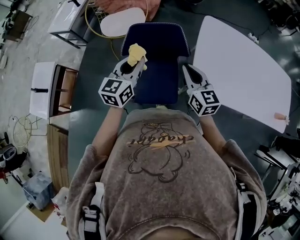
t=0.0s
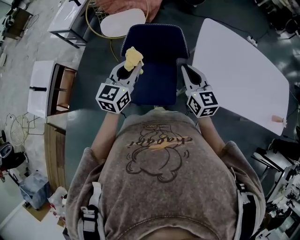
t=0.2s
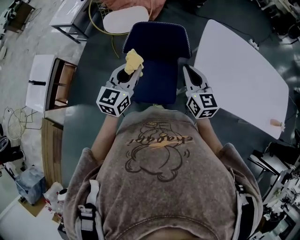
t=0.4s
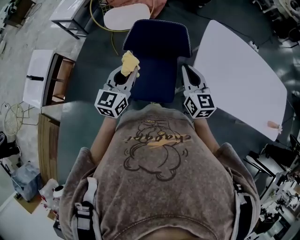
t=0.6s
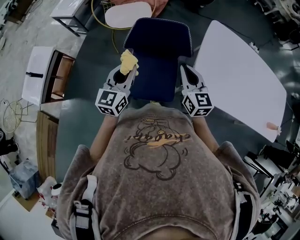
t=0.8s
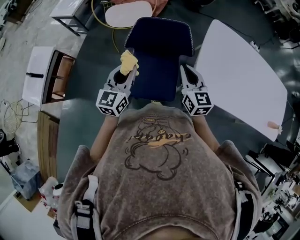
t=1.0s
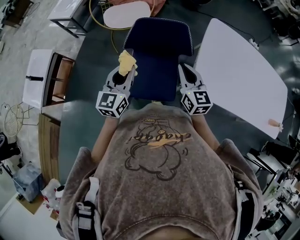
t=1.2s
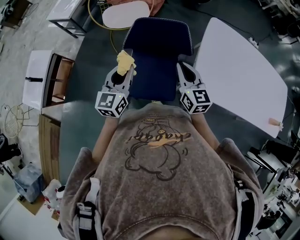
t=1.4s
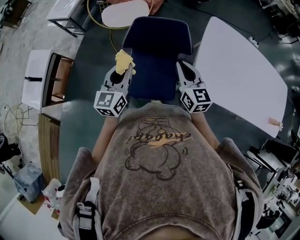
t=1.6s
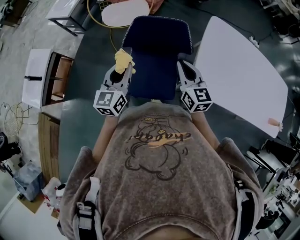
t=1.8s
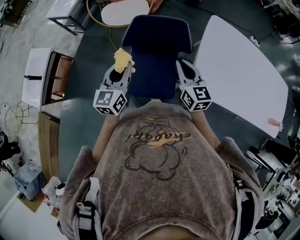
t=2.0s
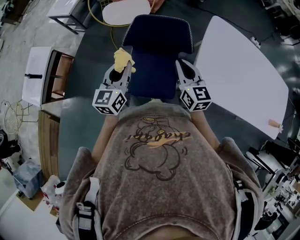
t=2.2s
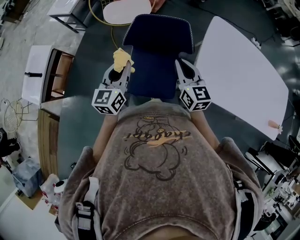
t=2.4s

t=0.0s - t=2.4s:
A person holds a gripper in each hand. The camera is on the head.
t=0.0s - t=1.2s: The left gripper is displaced to the left by roughly 5 cm.
t=1.2s - t=2.4s: There are only small adjustments of the grippers.

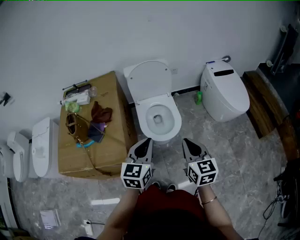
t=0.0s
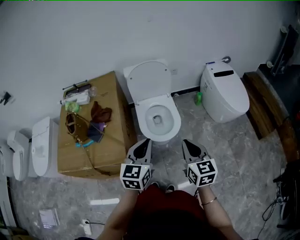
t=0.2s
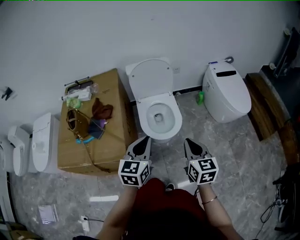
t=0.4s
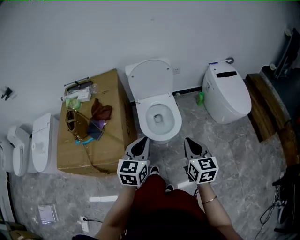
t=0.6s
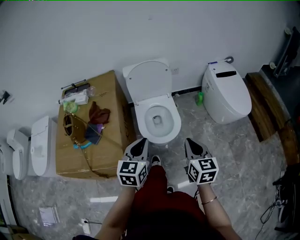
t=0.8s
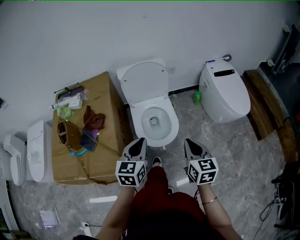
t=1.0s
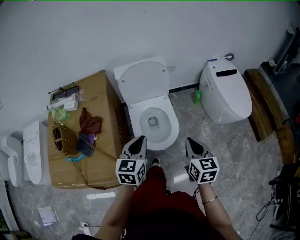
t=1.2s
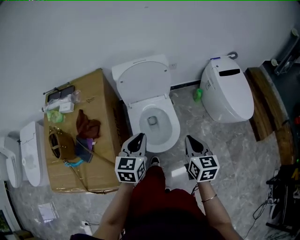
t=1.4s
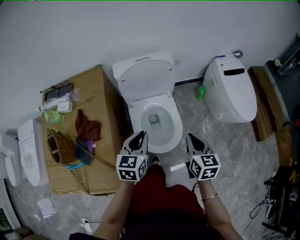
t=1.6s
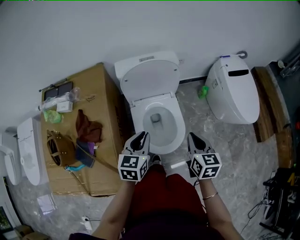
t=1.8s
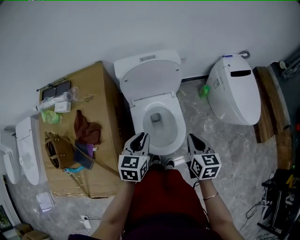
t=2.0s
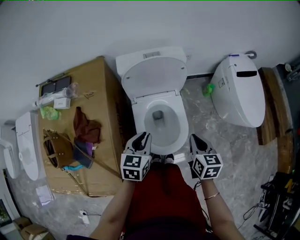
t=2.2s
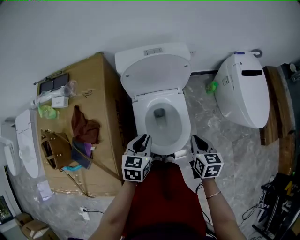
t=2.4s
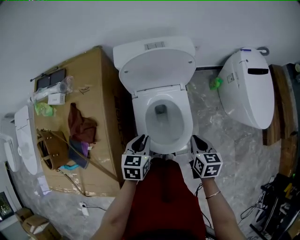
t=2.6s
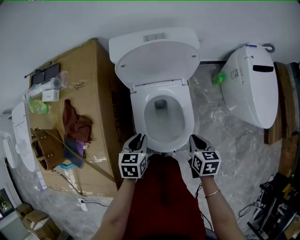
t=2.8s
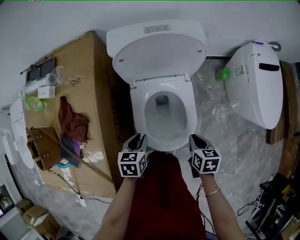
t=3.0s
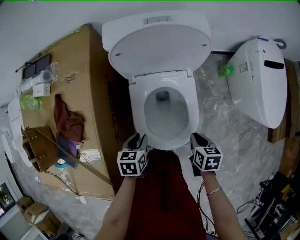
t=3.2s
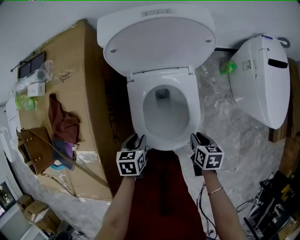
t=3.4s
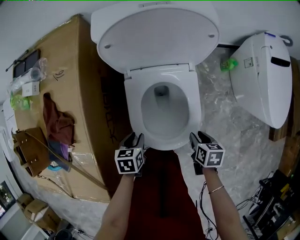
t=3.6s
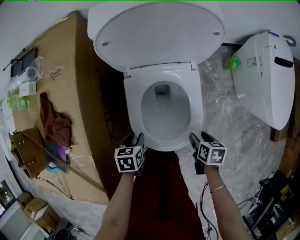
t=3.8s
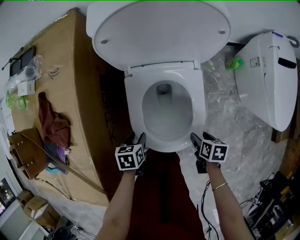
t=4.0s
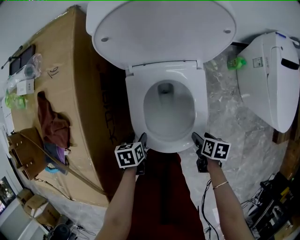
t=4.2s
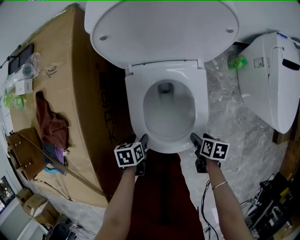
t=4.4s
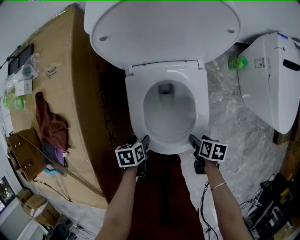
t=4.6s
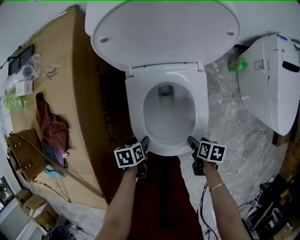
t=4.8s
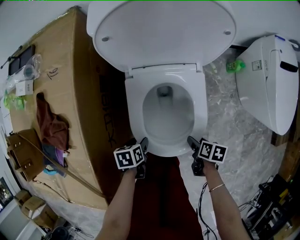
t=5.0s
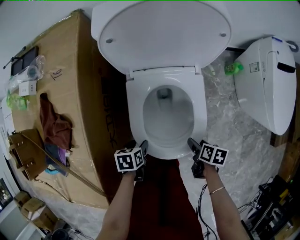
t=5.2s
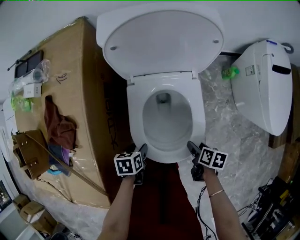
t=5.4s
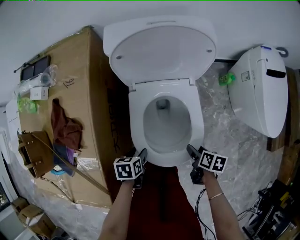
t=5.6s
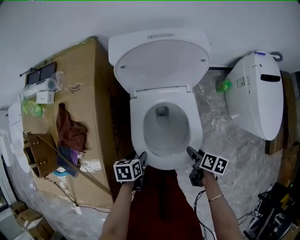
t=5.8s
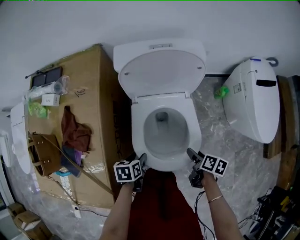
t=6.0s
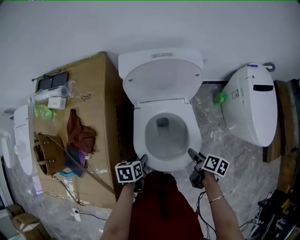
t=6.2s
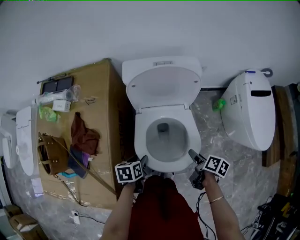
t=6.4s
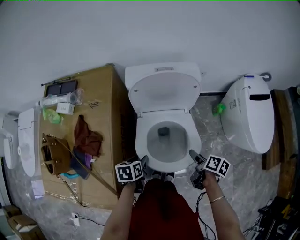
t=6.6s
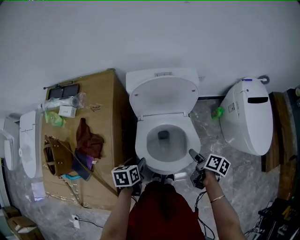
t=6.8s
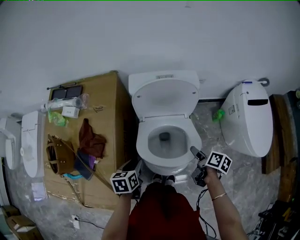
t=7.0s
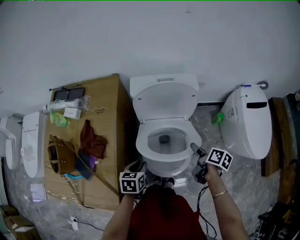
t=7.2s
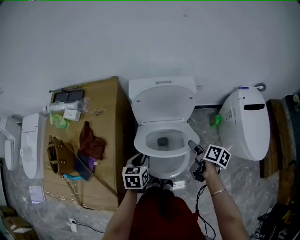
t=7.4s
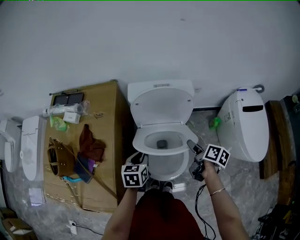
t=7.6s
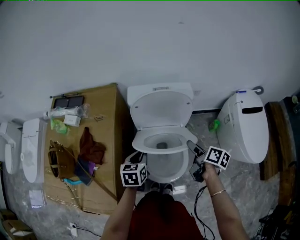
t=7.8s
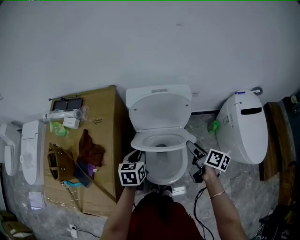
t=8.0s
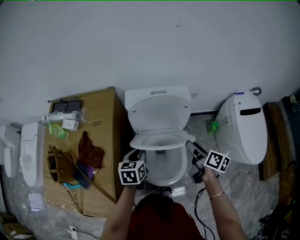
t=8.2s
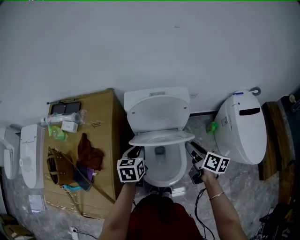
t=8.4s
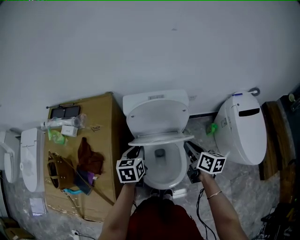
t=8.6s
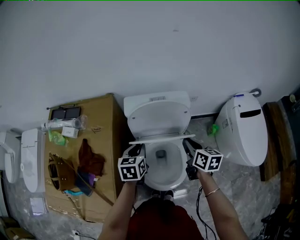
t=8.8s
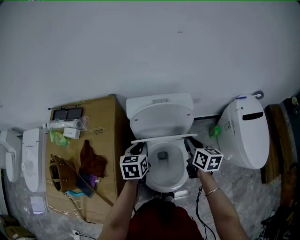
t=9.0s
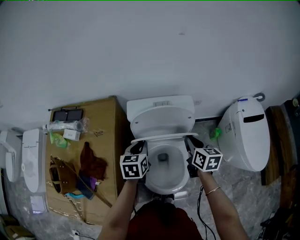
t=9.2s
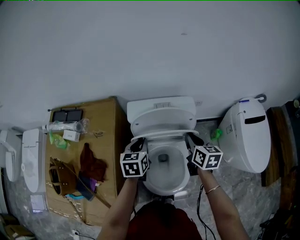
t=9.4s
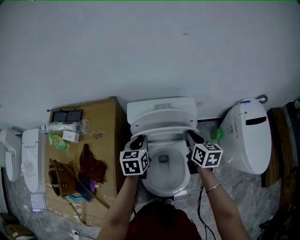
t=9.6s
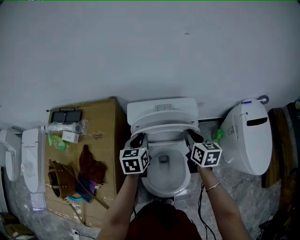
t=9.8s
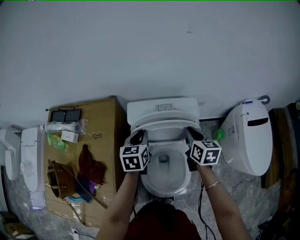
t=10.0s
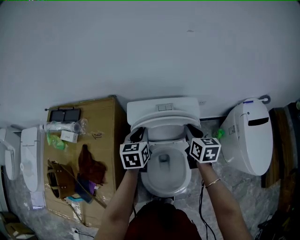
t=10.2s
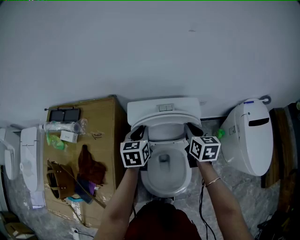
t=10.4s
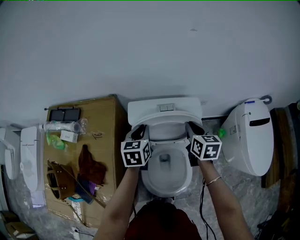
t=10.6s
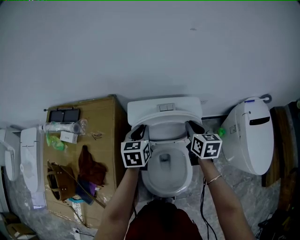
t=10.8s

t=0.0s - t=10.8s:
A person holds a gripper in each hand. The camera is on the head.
t=0.0s - t=1.6s: Both grippers travel together forward, roughly 25 cm.
t=1.6s - t=3.0s: The two grippers go roughly 25 cm downward. The left gripper changes its angle by roughly 30 degrees; the right gripper rotates about 30 degrees.
t=3.0s - t=4.6s: Both grippers travel together downward, roughly 20 cm. The right gripper turns by roughly 30 degrees, and opens. The left gripper turns by some 30 degrees, and opens up.
t=4.6s - t=6.2s: Both grippers move upward, some 15 cm. The right gripper changes its angle by about 30 degrees.
t=6.2s - t=7.8s: The grippers both shift upward and forward by about 20 cm. The left gripper changes its angle by approximately 30 degrees, and closes. The right gripper rotates about 20 degrees.
t=7.8s - t=9.2s: The right gripper shifts some 10 cm forward and upward, changes its angle by about 40 degrees, and closes its fingers. The left gripper is displaced forward by about 10 cm.
t=9.2s - t=10.8s: Both grippers travel together forward, some 10 cm.

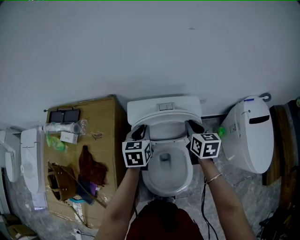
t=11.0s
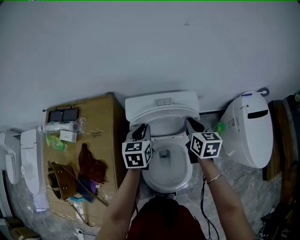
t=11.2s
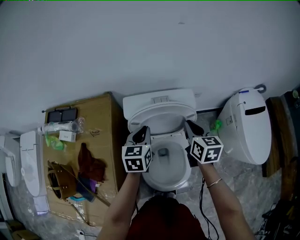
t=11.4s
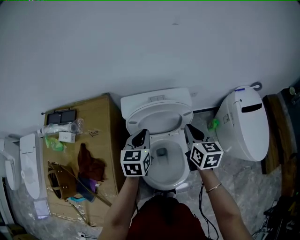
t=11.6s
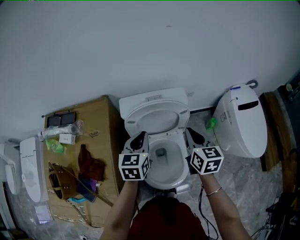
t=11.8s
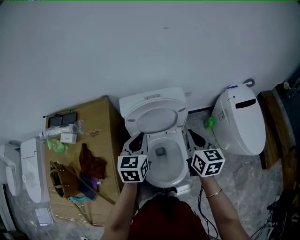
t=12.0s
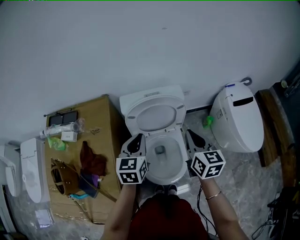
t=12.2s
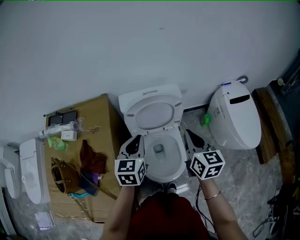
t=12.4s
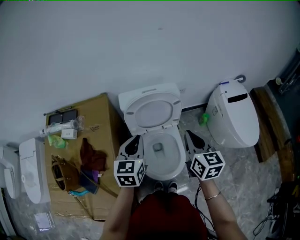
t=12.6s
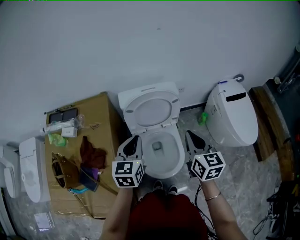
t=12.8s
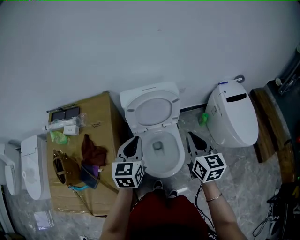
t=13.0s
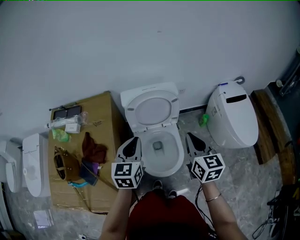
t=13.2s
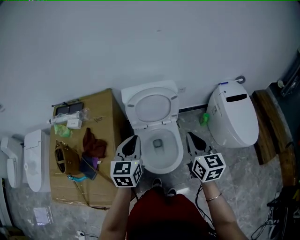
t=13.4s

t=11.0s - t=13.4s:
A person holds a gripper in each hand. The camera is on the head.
t=11.0s - t=12.2s: Both grippers travel together backward and upward, about 20 cm.
t=12.2s - t=13.4s: The left gripper goes some 15 cm backward and upward. Meanwhile the right gripper shifts approximately 10 cm backward.

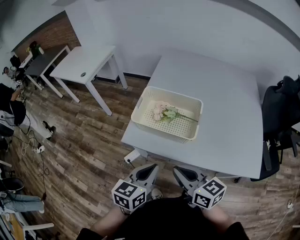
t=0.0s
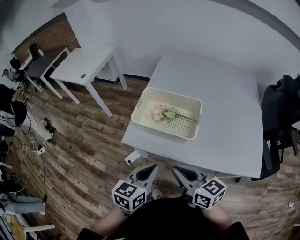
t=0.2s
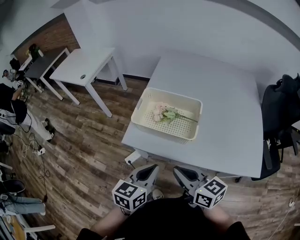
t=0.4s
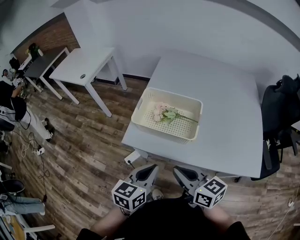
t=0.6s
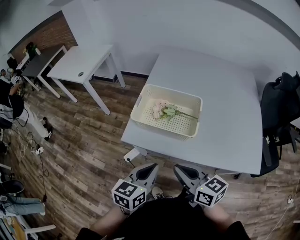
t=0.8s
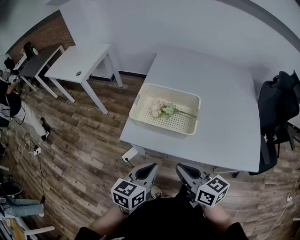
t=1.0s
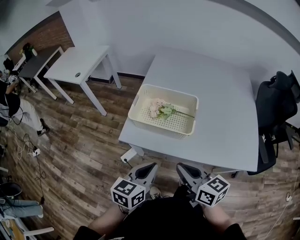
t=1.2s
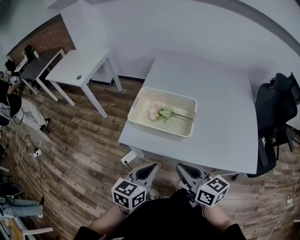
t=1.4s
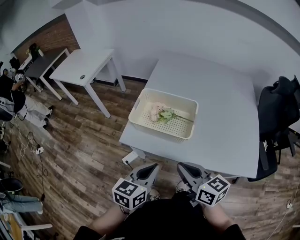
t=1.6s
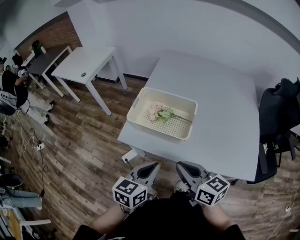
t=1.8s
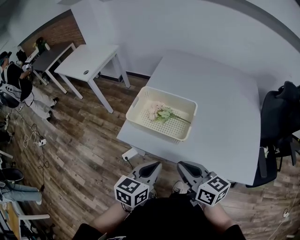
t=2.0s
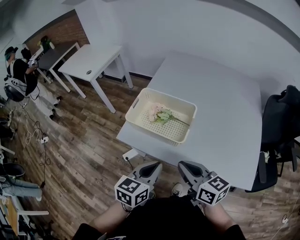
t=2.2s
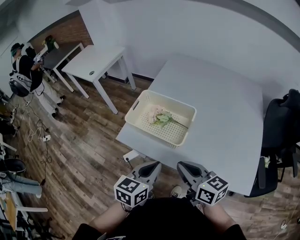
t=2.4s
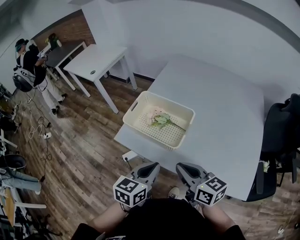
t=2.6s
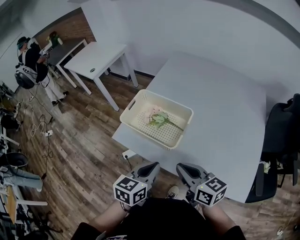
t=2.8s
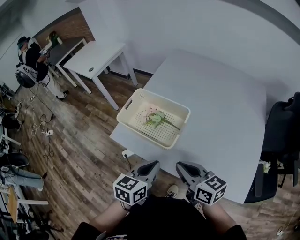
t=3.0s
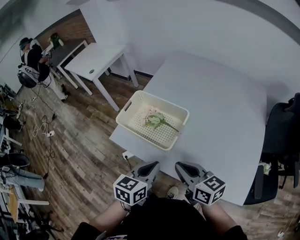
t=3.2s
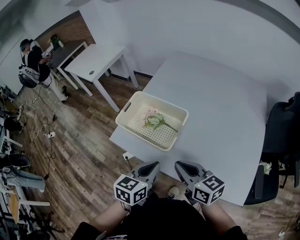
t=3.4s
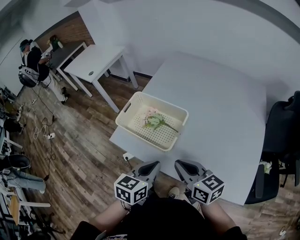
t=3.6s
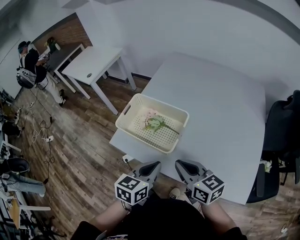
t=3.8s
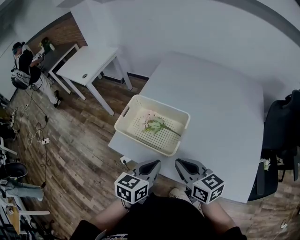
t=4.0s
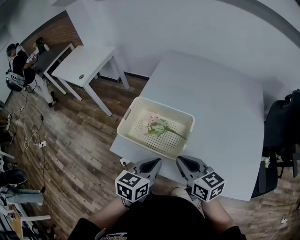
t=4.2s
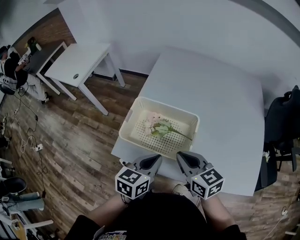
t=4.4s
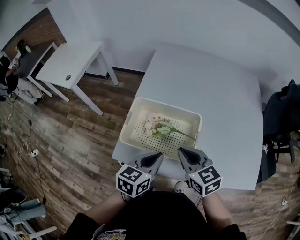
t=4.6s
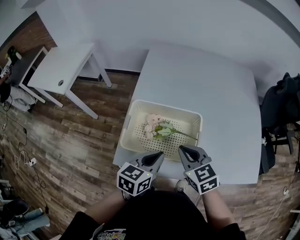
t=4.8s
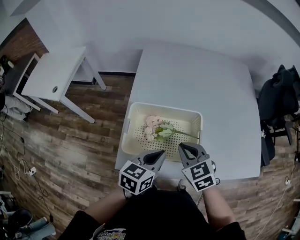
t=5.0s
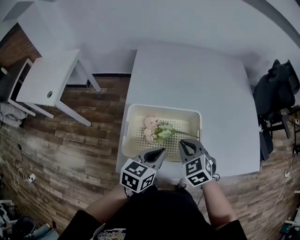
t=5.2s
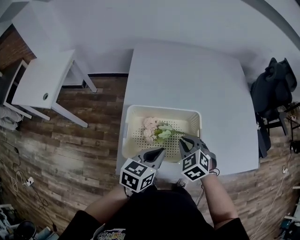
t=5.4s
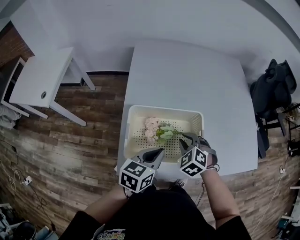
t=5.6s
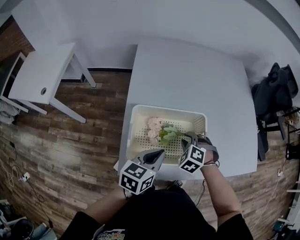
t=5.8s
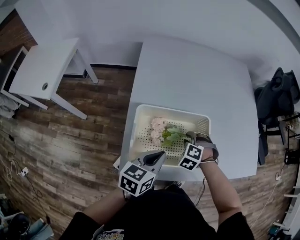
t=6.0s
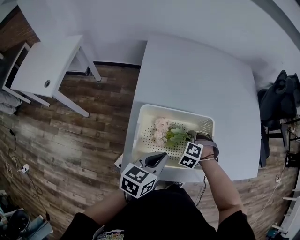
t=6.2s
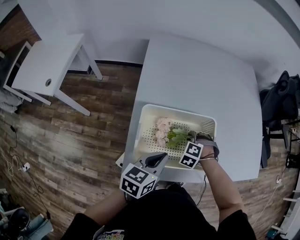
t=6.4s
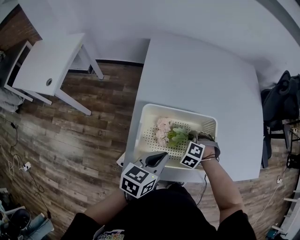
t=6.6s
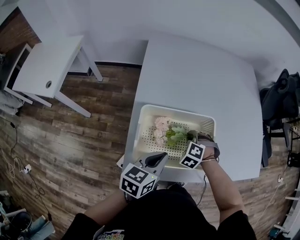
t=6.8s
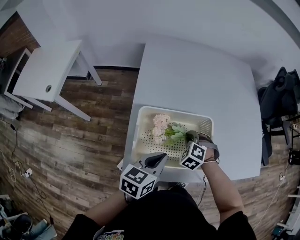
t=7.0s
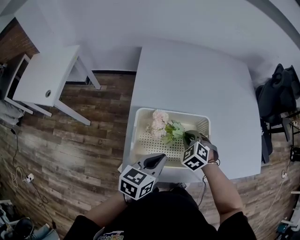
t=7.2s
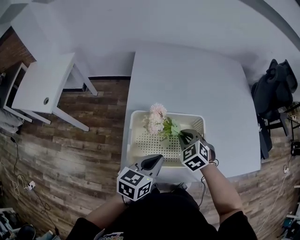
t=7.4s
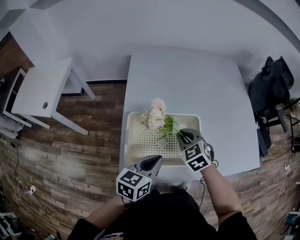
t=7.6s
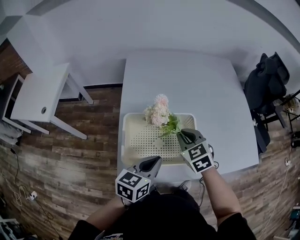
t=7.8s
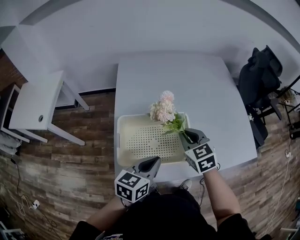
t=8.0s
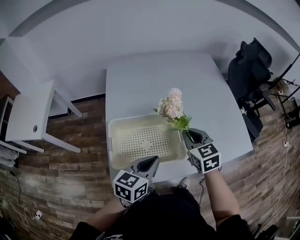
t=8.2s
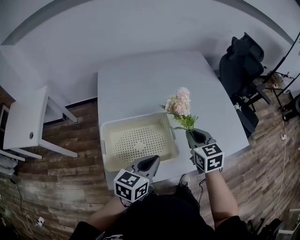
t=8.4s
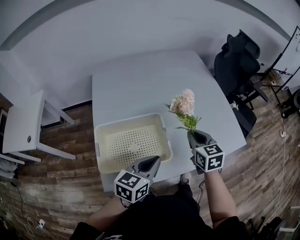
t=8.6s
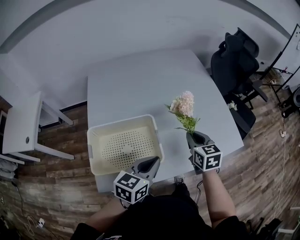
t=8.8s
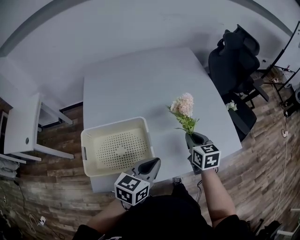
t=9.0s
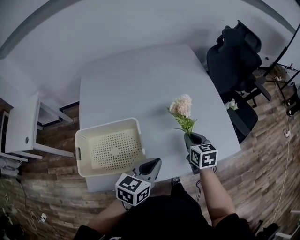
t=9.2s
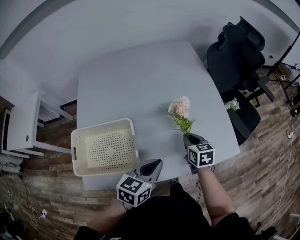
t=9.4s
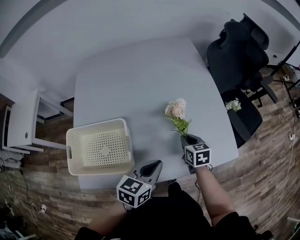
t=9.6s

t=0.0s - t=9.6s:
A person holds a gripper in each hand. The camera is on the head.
t=0.0s - t=1.6s: The grippers move only a little.
t=1.6s - t=3.2s: The two grippers go approximately 15 cm to the right.
t=3.2s - t=4.8s: The right gripper ends up approximately 20 cm from where it was, and swivels some 40 degrees; the left gripper changes place by roughly 20 cm, and changes its angle by approximately 20 degrees.
t=4.8s - t=6.4s: The right gripper moves downward, roughly 20 cm, and points its fingers about 30 degrees further downward, while the left gripper changes place by approximately 10 cm.
t=6.4s - t=8.0s: The right gripper is displaced upward by approximately 20 cm, and twists roughly 60 degrees clockwise, seen from behind, while the left gripper moves to the right, approximately 5 cm.
t=8.0s - t=9.6s: The right gripper is displaced to the right and downward by about 35 cm, and rotates some 30 degrees. The left gripper goes some 30 cm to the right.
